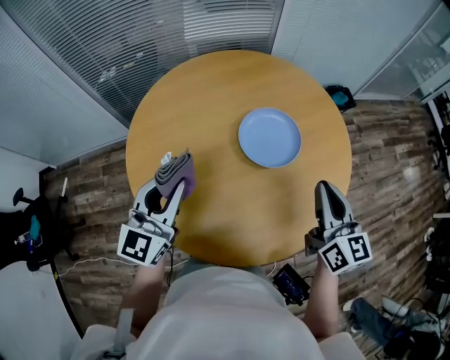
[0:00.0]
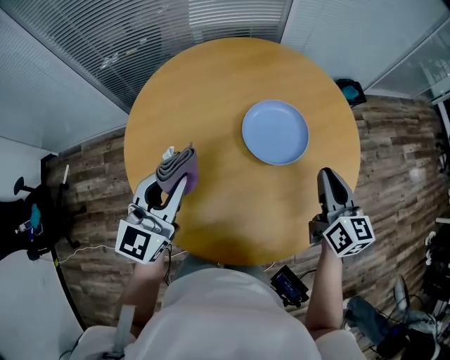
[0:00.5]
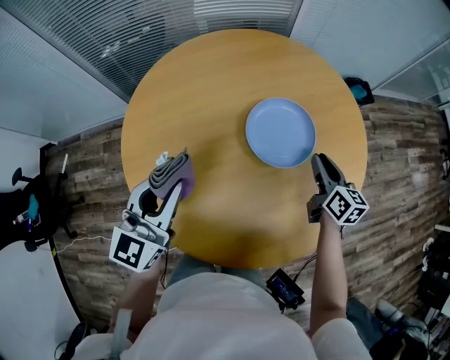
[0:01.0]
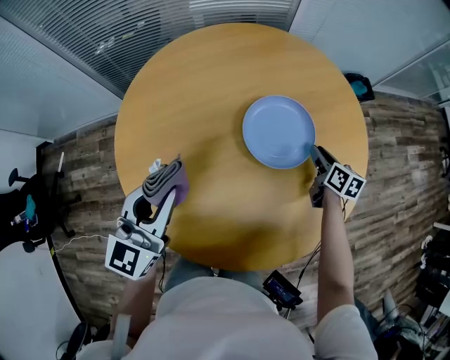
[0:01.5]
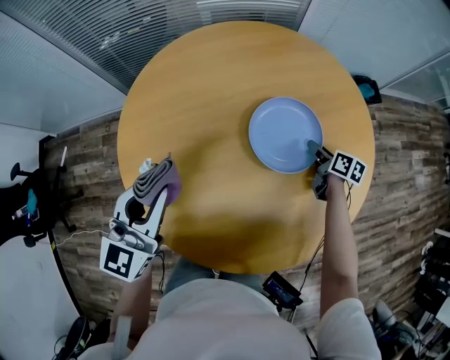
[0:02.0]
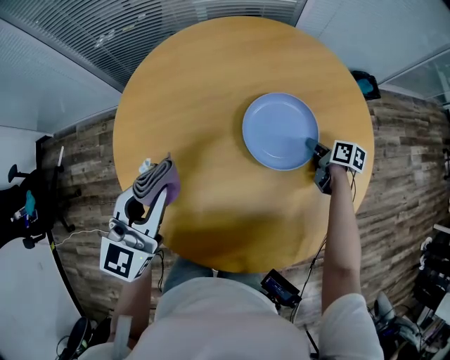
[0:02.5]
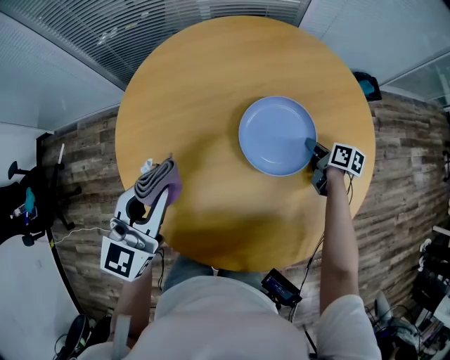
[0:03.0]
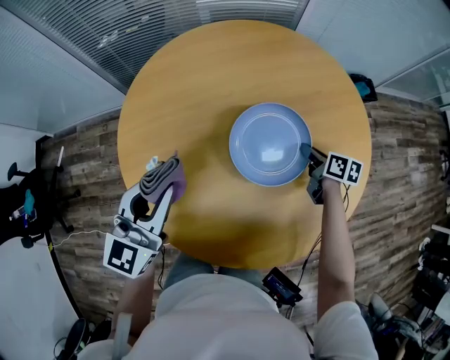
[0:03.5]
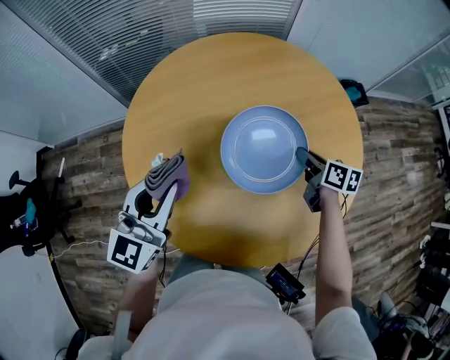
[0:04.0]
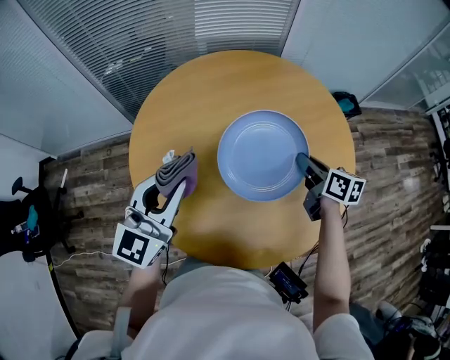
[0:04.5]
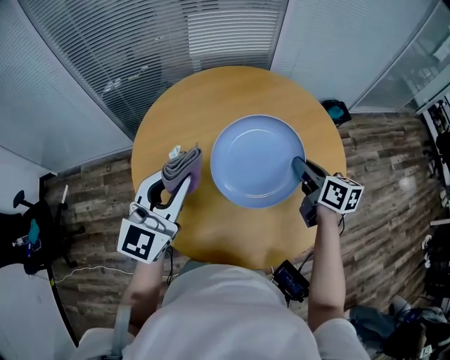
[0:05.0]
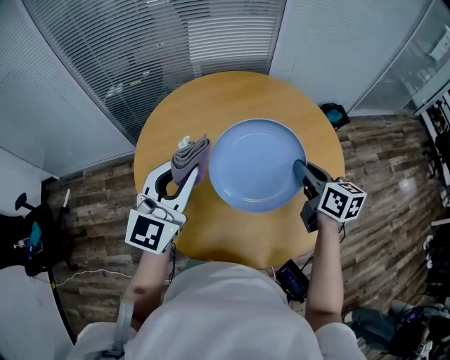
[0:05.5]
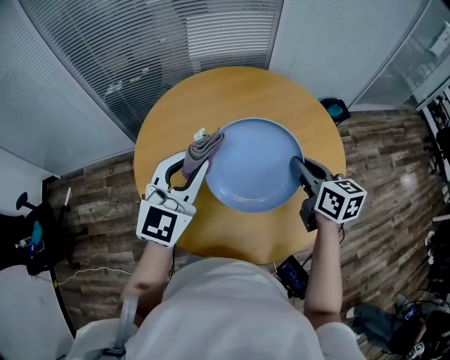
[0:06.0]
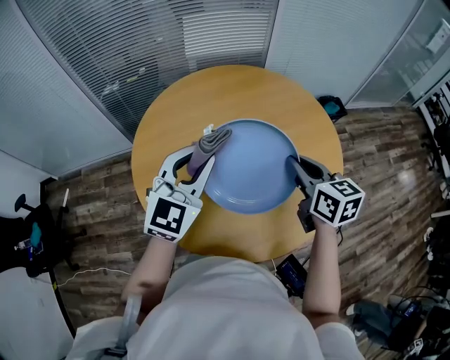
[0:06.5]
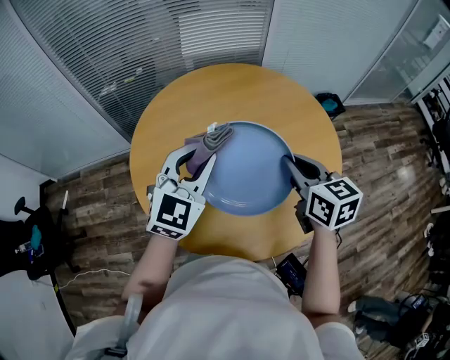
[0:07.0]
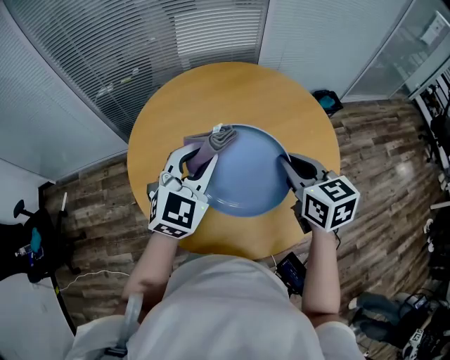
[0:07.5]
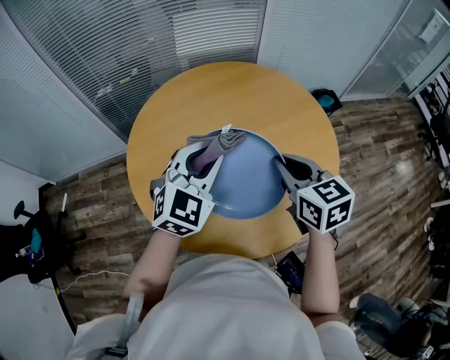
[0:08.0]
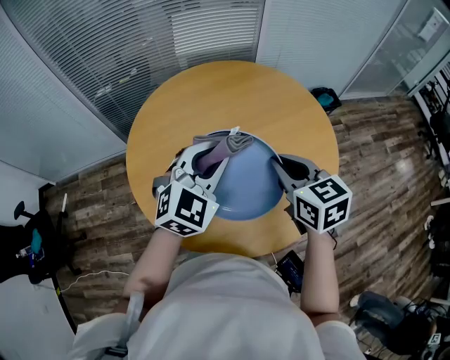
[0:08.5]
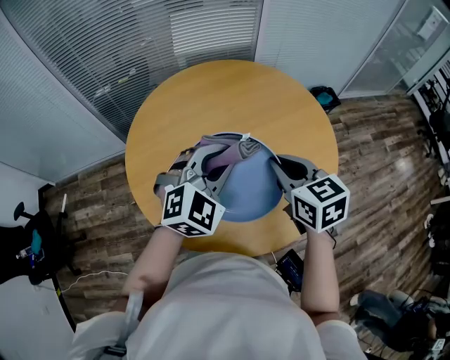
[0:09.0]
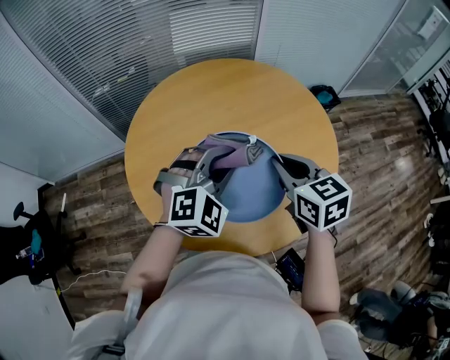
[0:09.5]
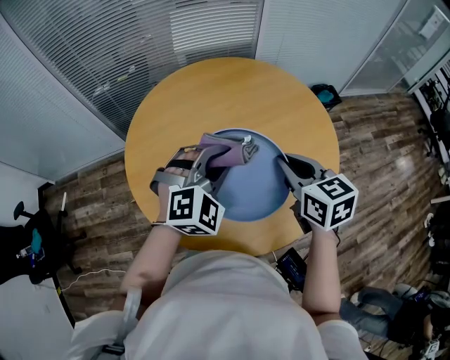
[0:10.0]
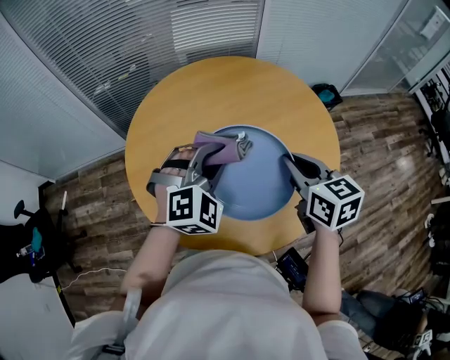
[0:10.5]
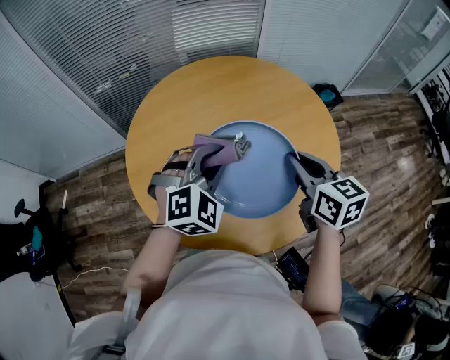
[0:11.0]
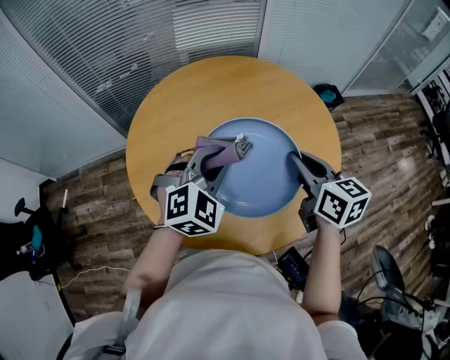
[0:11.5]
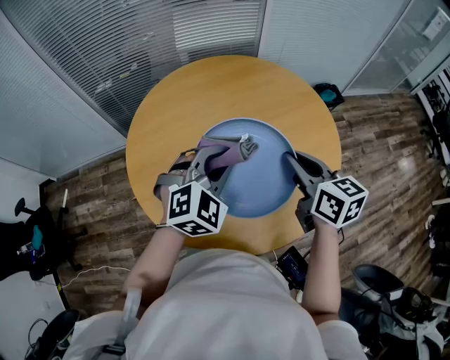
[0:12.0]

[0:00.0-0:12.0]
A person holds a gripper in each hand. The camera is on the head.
0:00.0 to 0:02.0: The left gripper moves some 5 cm. Meanwhile the right gripper travels downward and forward by some 35 cm, rotates some 50 degrees, and opens.
0:02.0 to 0:04.0: The right gripper goes some 15 cm upward, to the left and backward, and closes up.
0:04.0 to 0:06.0: The right gripper goes about 20 cm upward and backward, and rotates about 20 degrees; the left gripper is displaced upward and to the right by some 10 cm.
0:06.0 to 0:08.0: The right gripper changes place by some 5 cm. Meanwhile the left gripper moves to the right, some 5 cm.
0:08.0 to 0:10.0: The left gripper changes its angle by approximately 30 degrees.
0:10.0 to 0:12.0: There are only small adjustments of the grippers.

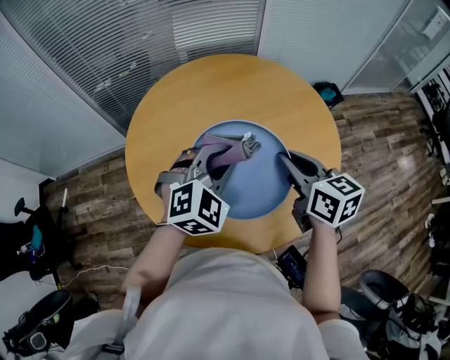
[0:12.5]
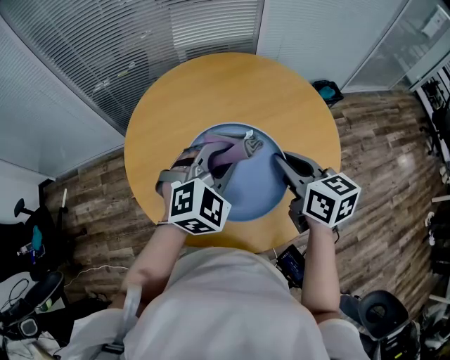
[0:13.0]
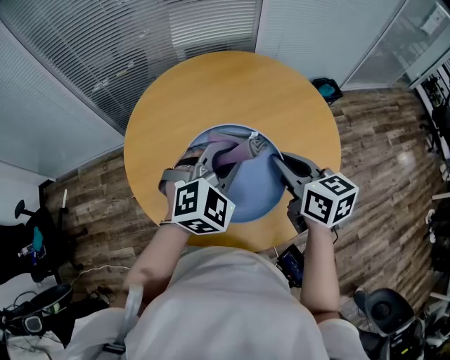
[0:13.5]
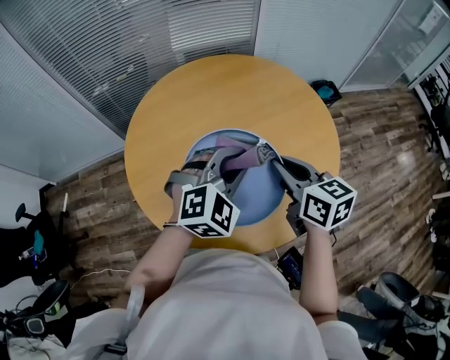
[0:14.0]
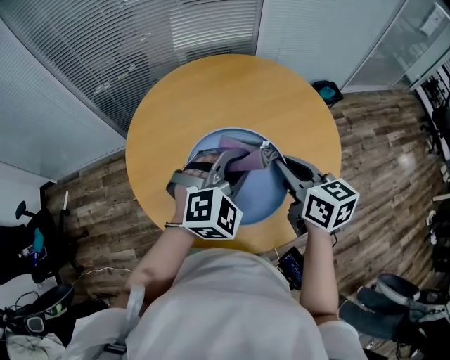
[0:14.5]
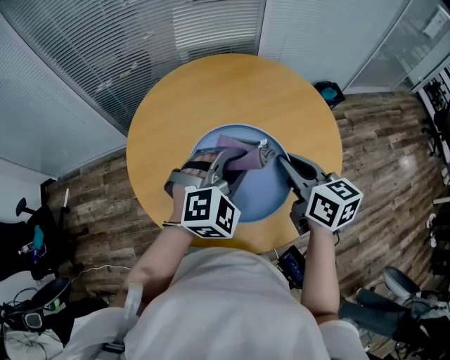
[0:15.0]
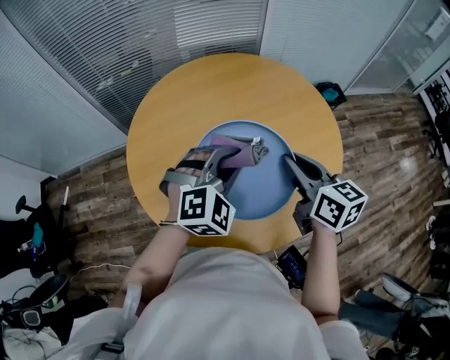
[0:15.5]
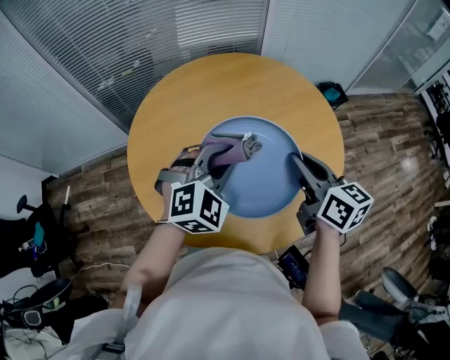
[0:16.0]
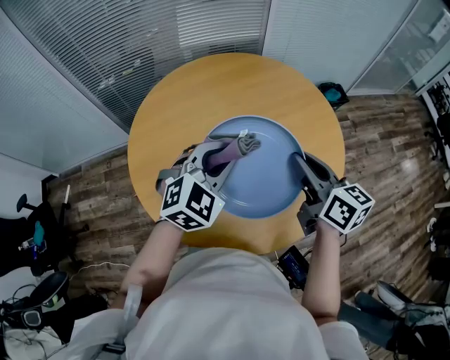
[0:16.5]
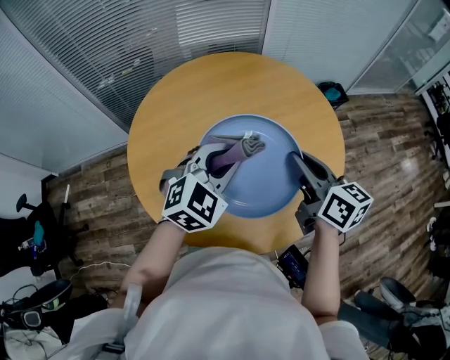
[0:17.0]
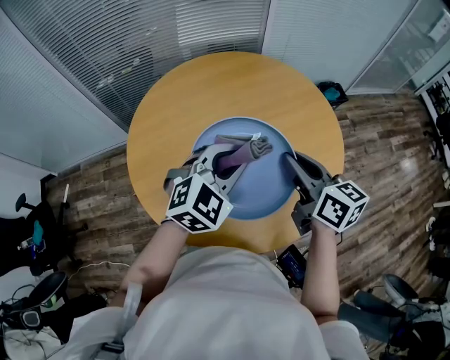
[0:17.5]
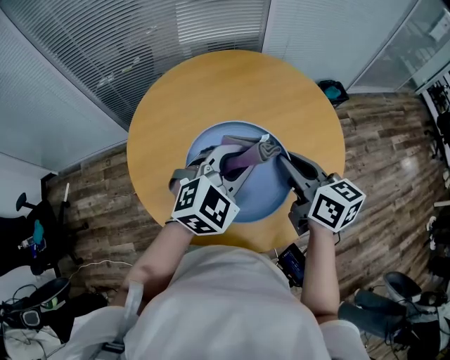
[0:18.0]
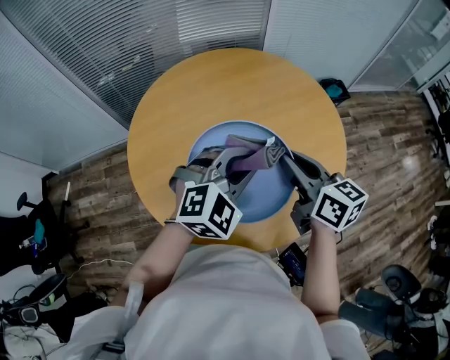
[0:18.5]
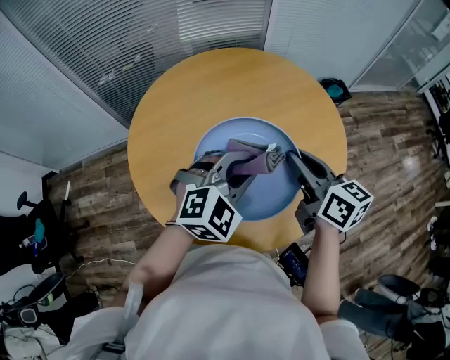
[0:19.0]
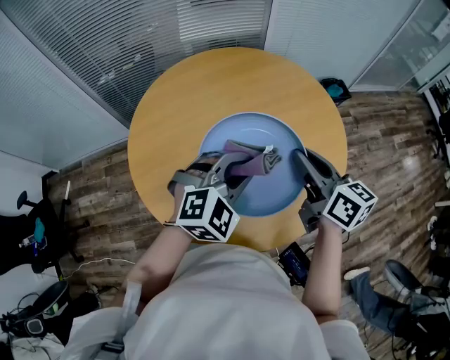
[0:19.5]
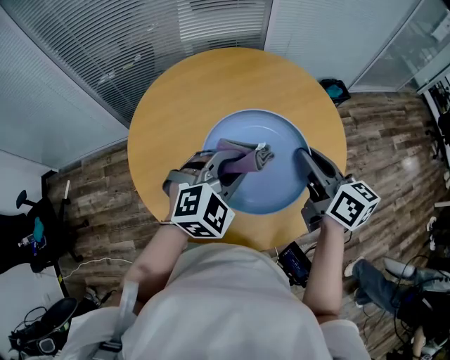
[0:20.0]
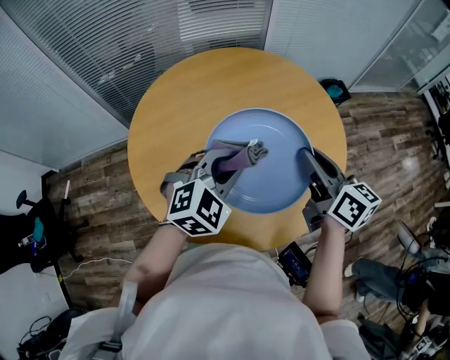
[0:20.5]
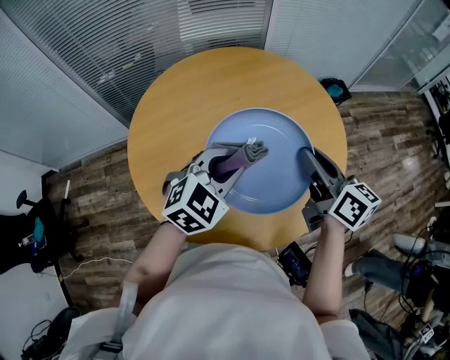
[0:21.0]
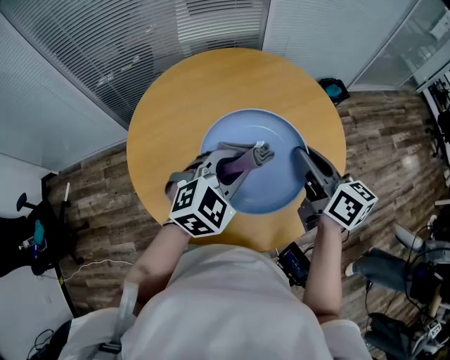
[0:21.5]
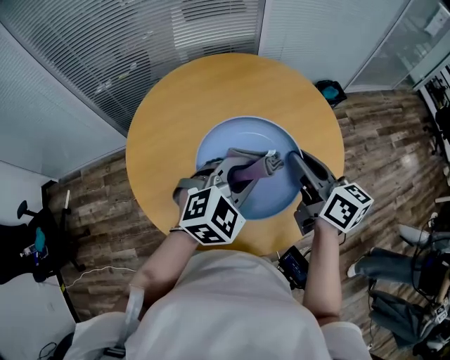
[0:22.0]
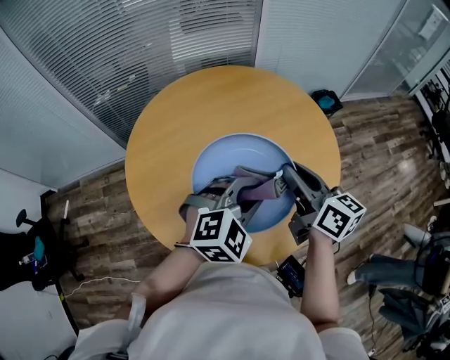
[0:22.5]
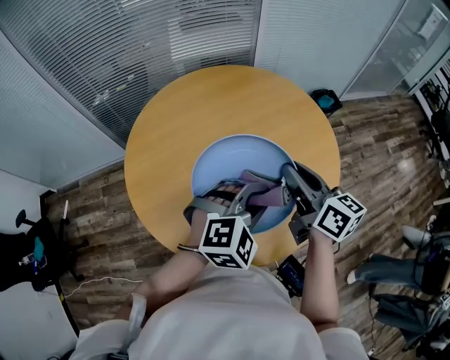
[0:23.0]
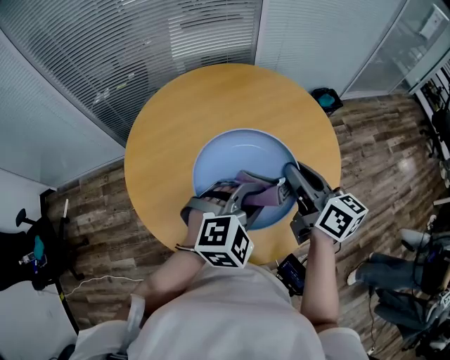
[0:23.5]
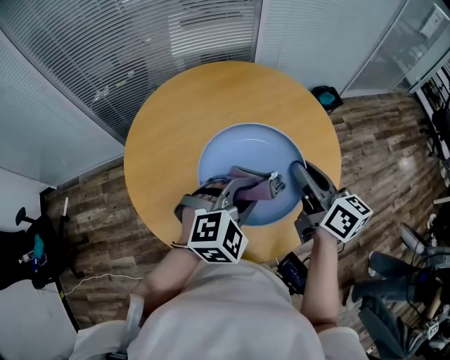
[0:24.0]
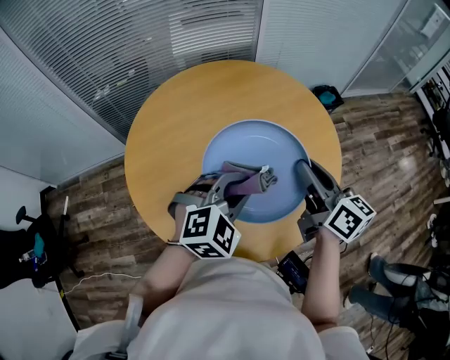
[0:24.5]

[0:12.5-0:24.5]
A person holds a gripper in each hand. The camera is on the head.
0:12.5 to 0:14.5: The grippers move only a little.
0:14.5 to 0:16.5: The left gripper shifts by about 5 cm.
0:16.5 to 0:18.5: The left gripper shifts roughly 5 cm to the right.
0:18.5 to 0:20.5: The left gripper moves about 5 cm.
0:20.5 to 0:22.5: The left gripper heads to the right, covering roughly 10 cm.
0:22.5 to 0:24.5: The grippers stay close to where they were, moving slightly.

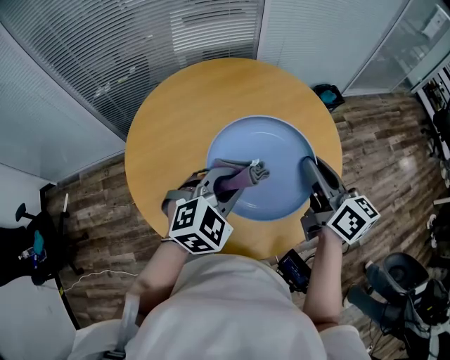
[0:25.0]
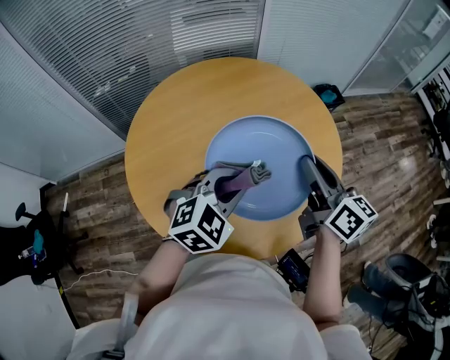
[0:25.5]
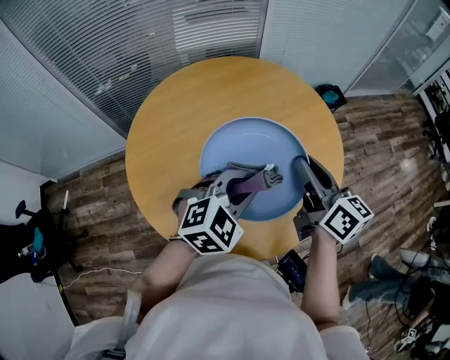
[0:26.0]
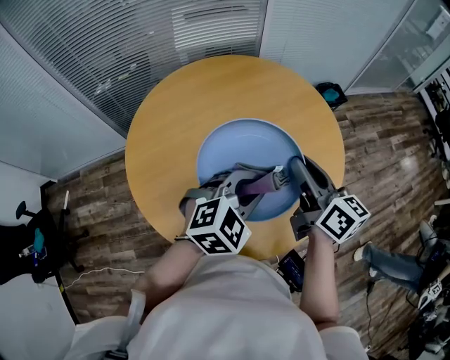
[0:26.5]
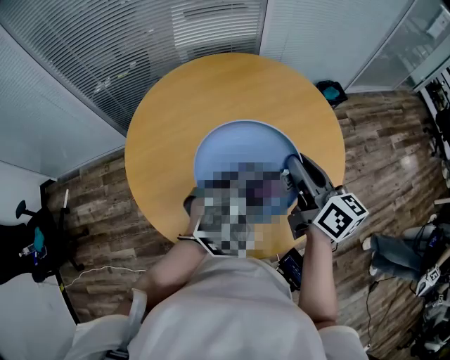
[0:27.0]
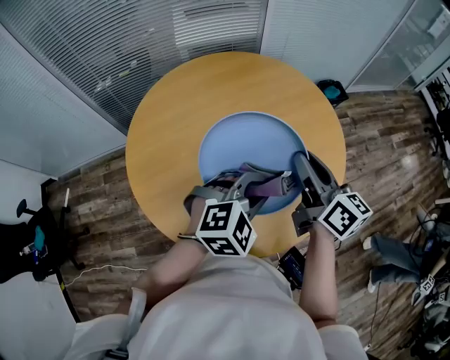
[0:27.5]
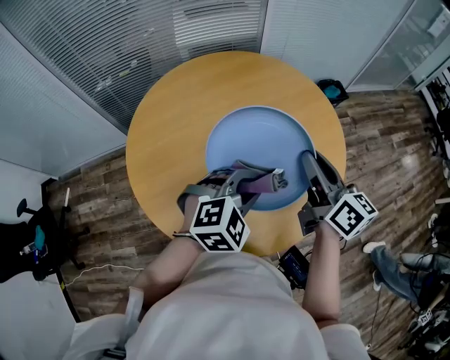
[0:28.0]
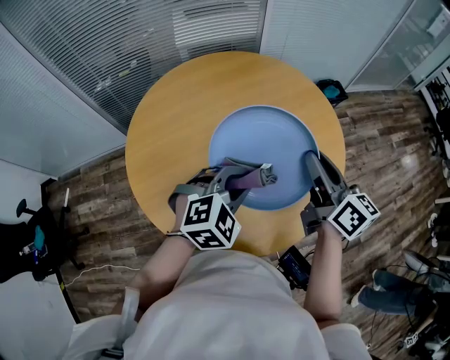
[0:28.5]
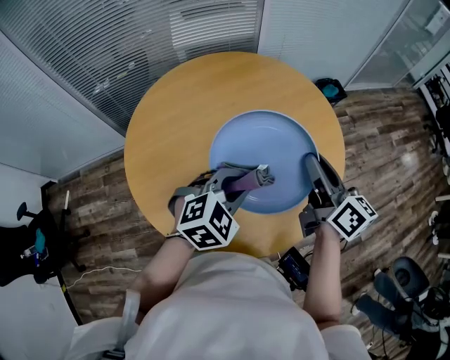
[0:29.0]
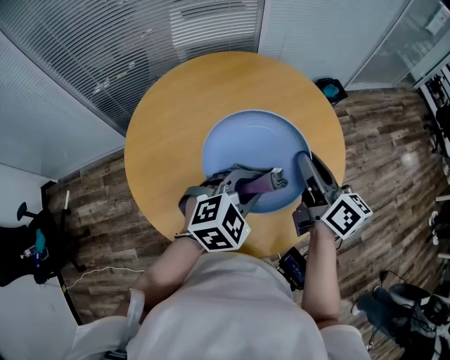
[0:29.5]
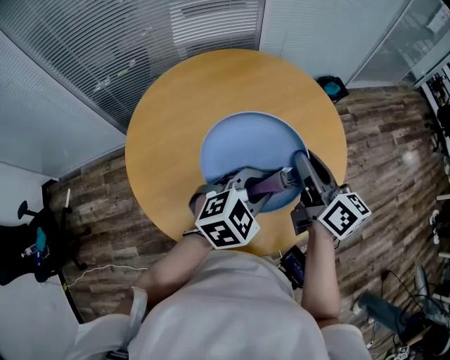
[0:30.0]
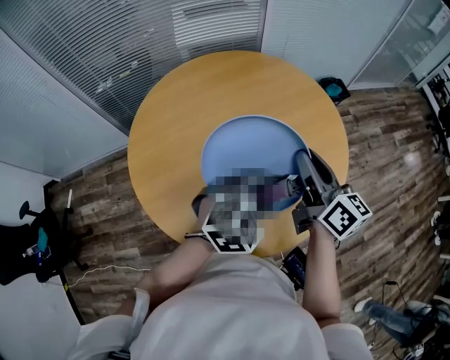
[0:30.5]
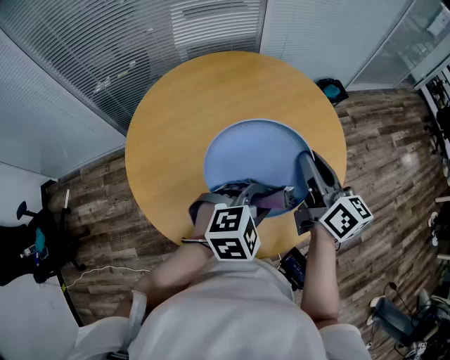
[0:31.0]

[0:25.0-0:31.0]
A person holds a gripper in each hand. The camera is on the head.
0:25.0 to 0:27.0: The left gripper moves to the right, roughly 5 cm.
0:27.0 to 0:29.0: The left gripper travels to the left by approximately 5 cm.
0:29.0 to 0:31.0: The left gripper moves to the right, approximately 5 cm.
